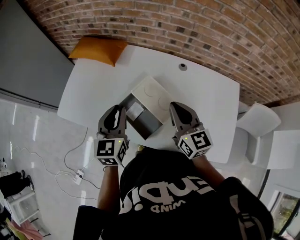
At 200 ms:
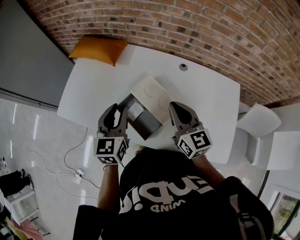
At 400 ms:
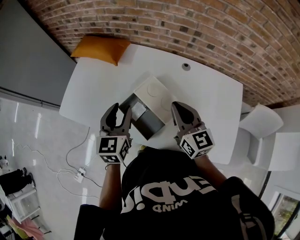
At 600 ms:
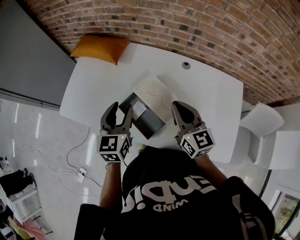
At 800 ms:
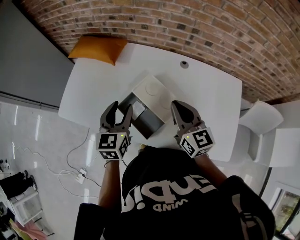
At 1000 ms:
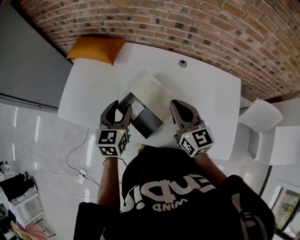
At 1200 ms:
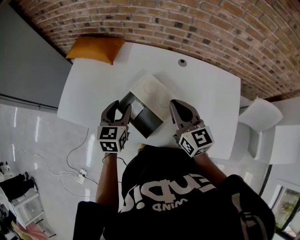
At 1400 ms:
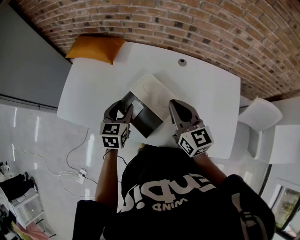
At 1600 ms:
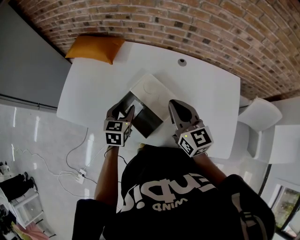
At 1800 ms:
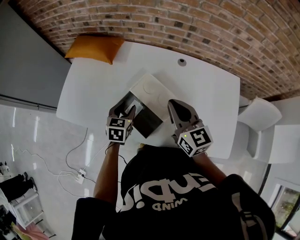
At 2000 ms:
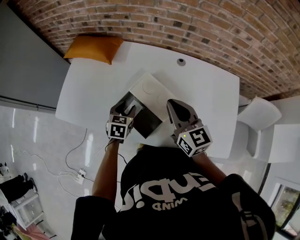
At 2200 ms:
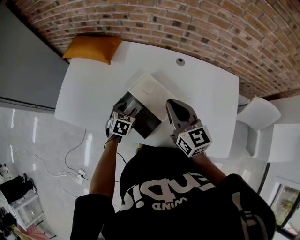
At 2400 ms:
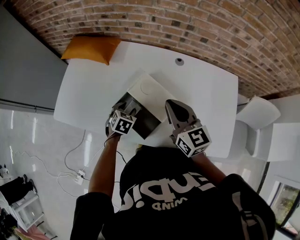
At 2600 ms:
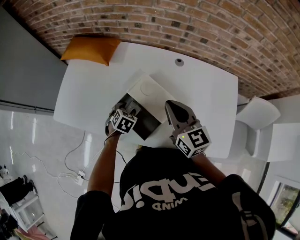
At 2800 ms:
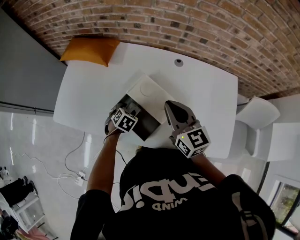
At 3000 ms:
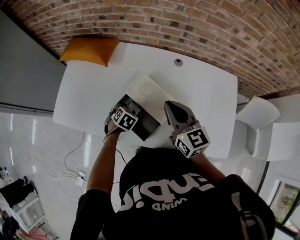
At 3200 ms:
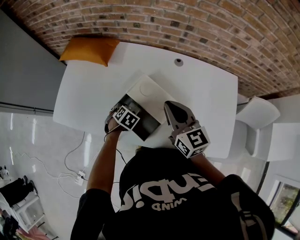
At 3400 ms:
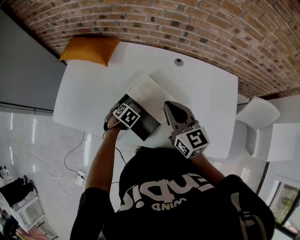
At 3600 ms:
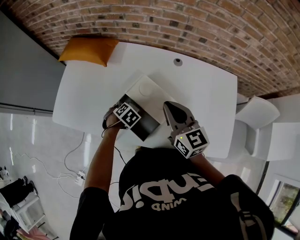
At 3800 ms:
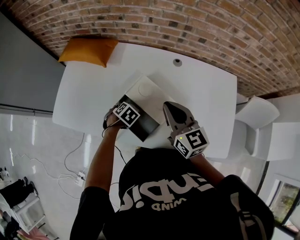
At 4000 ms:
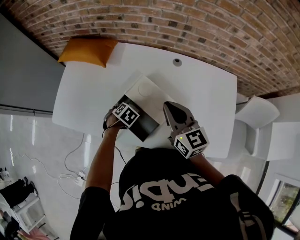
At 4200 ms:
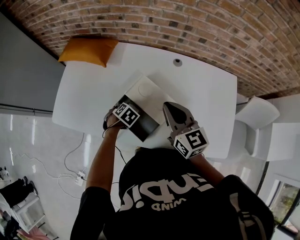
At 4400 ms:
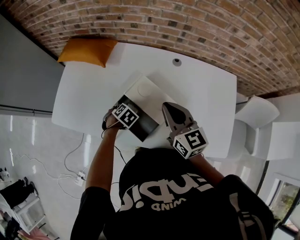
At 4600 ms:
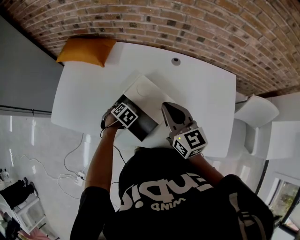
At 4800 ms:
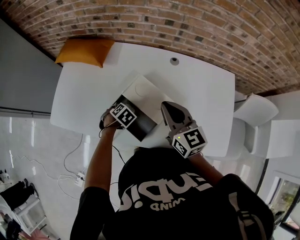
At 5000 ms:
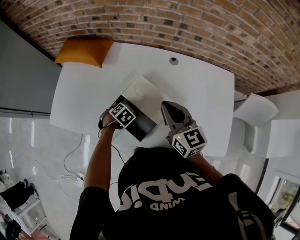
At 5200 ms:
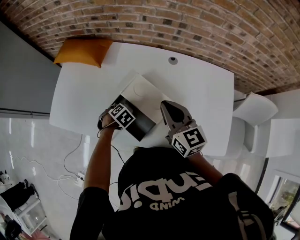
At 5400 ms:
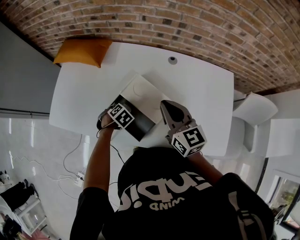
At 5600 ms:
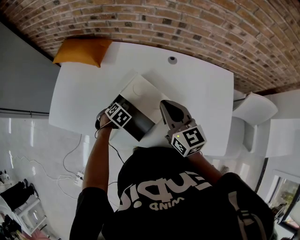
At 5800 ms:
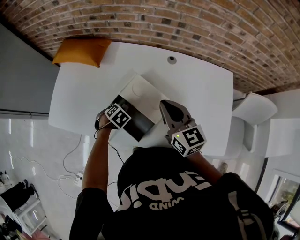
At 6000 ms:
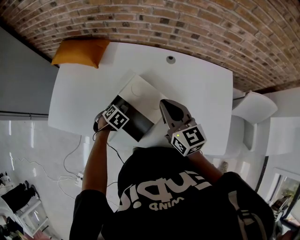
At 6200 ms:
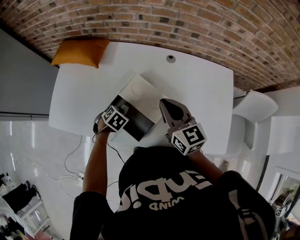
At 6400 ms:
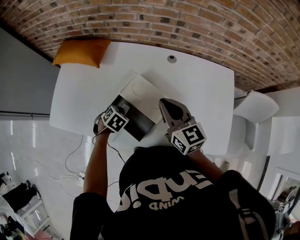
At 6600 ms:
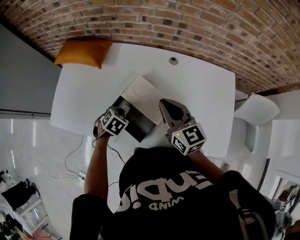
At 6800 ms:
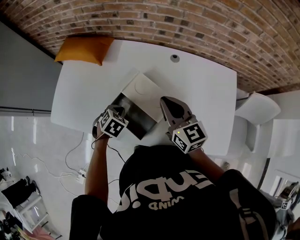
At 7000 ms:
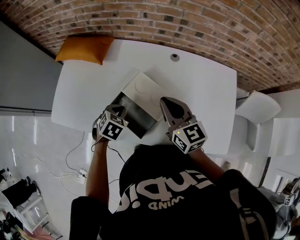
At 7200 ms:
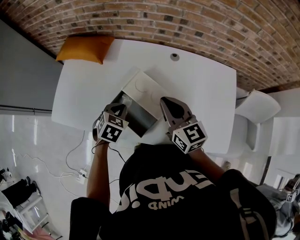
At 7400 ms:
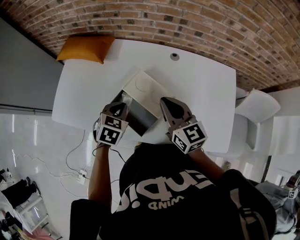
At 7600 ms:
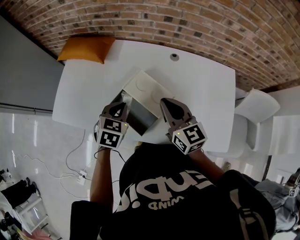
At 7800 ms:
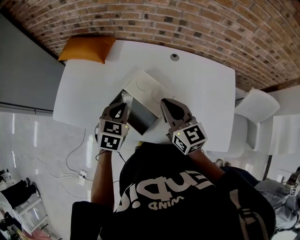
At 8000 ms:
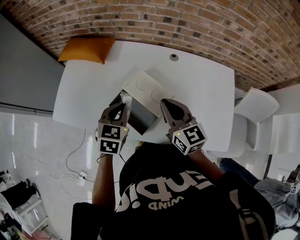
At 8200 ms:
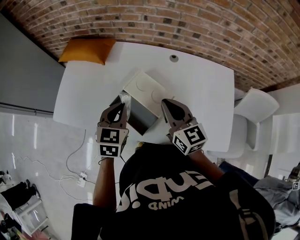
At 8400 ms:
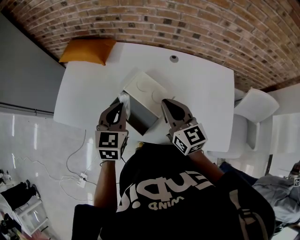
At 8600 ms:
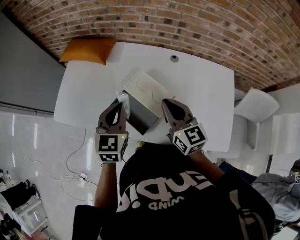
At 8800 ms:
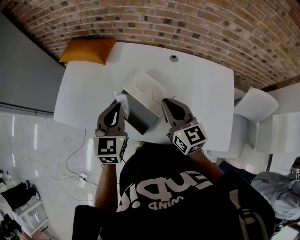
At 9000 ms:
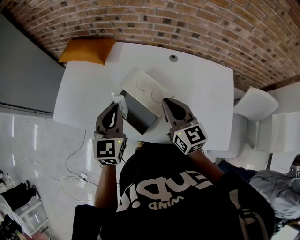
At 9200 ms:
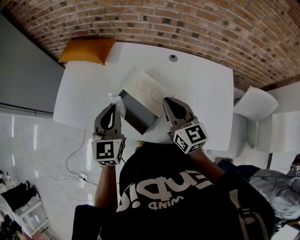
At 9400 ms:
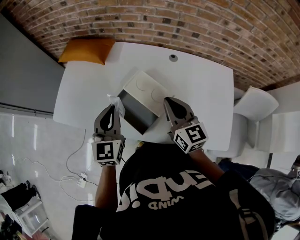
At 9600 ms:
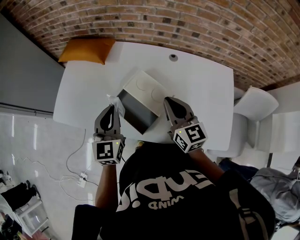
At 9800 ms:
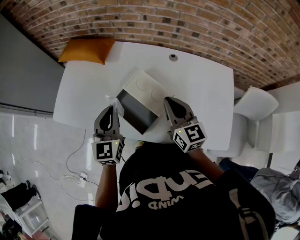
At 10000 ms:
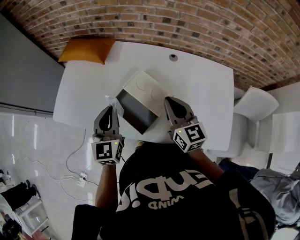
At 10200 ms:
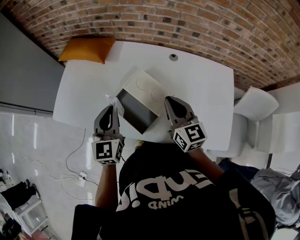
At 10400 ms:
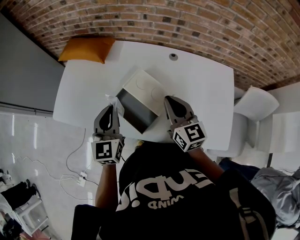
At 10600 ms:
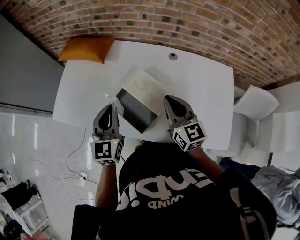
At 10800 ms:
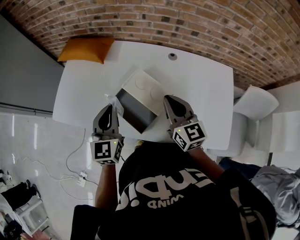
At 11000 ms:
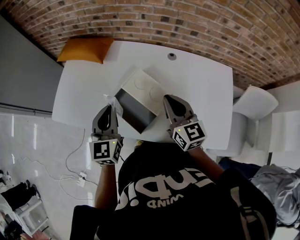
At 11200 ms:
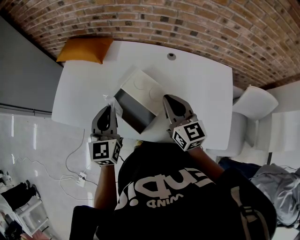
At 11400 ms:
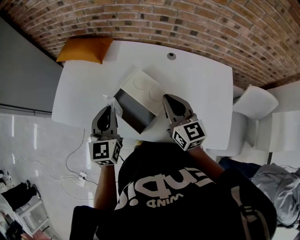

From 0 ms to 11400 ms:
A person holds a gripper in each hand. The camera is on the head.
From 0 ms to 1400 ms: The left gripper is displaced downward by some 10 cm, and opens its fingers.
From 1400 ms to 2800 ms: The left gripper shifts approximately 15 cm downward, and angles its fingers downward, by approximately 30 degrees.
From 2800 ms to 4200 ms: The grippers make only small movements.
From 4200 ms to 5600 ms: The left gripper closes up.
From 5600 ms to 7200 ms: The left gripper shifts approximately 15 cm upward, and rotates about 20 degrees.
From 7200 ms to 8600 ms: The left gripper heads upward, covering roughly 15 cm, and angles its fingers upward, by approximately 30 degrees.
From 8600 ms to 10000 ms: The grippers move only a little.
From 10000 ms to 11400 ms: Both grippers stay put.

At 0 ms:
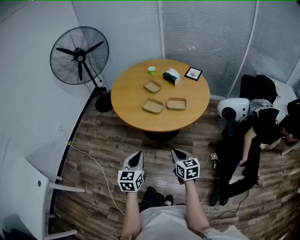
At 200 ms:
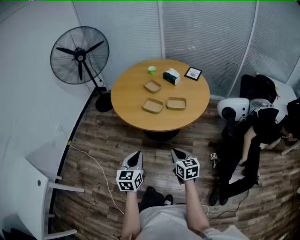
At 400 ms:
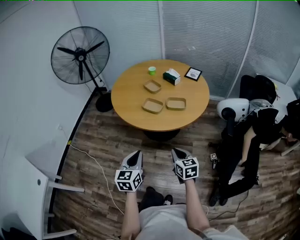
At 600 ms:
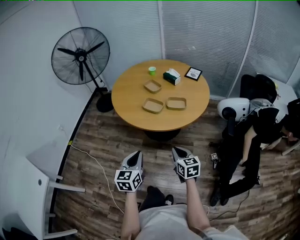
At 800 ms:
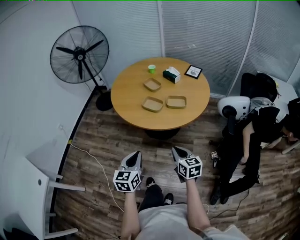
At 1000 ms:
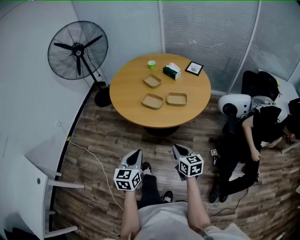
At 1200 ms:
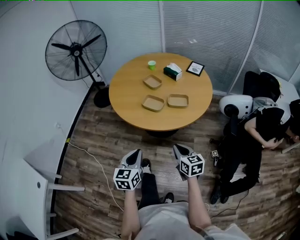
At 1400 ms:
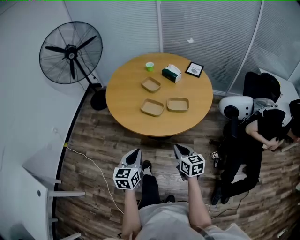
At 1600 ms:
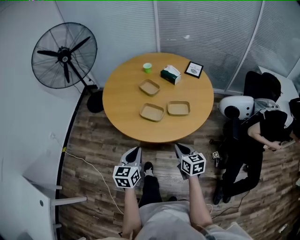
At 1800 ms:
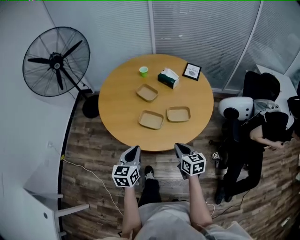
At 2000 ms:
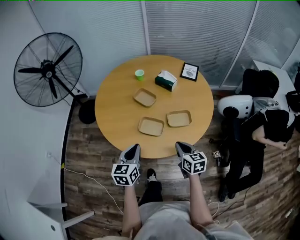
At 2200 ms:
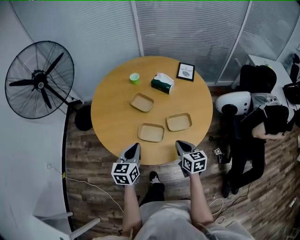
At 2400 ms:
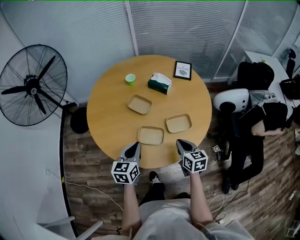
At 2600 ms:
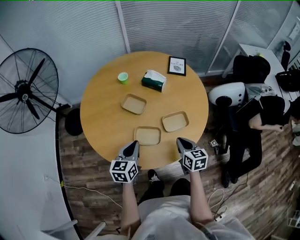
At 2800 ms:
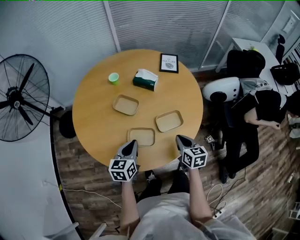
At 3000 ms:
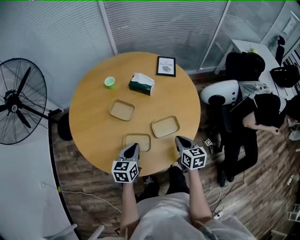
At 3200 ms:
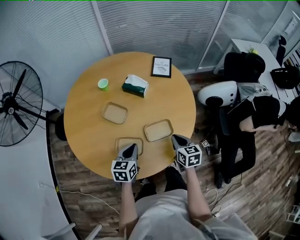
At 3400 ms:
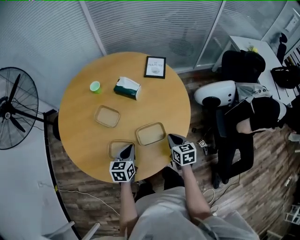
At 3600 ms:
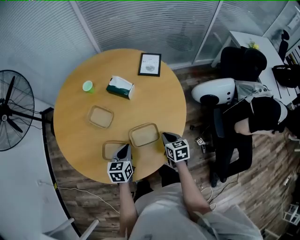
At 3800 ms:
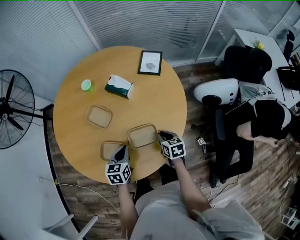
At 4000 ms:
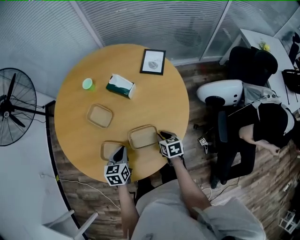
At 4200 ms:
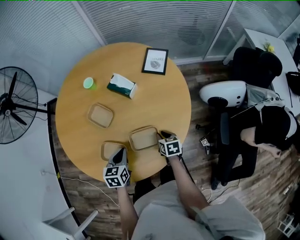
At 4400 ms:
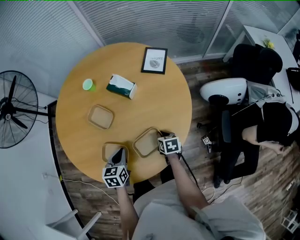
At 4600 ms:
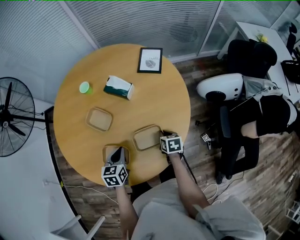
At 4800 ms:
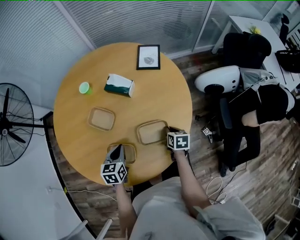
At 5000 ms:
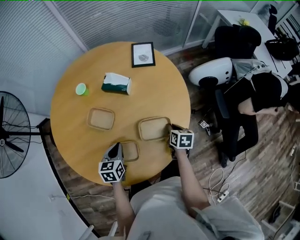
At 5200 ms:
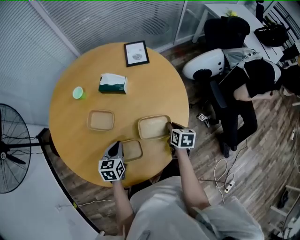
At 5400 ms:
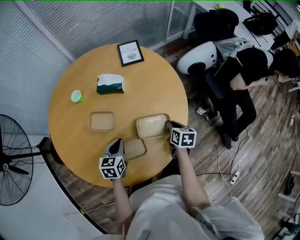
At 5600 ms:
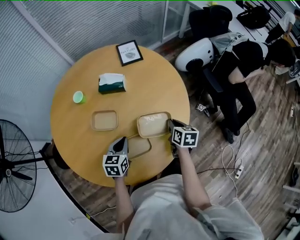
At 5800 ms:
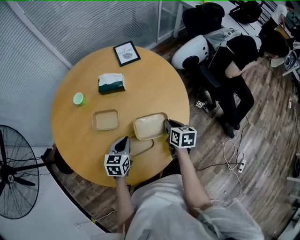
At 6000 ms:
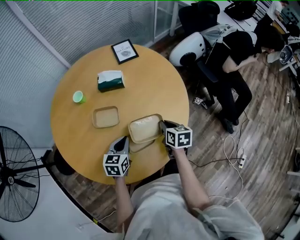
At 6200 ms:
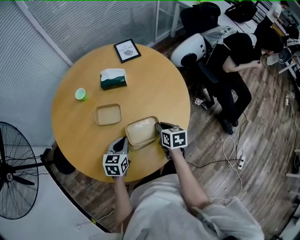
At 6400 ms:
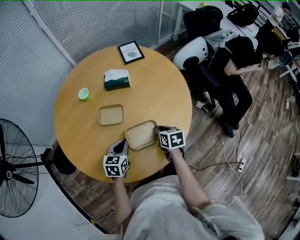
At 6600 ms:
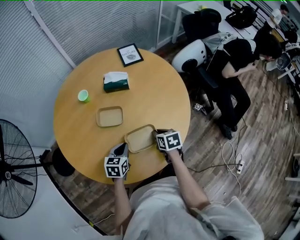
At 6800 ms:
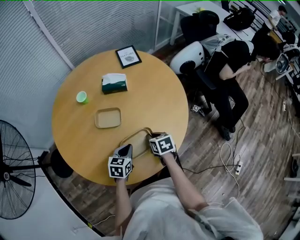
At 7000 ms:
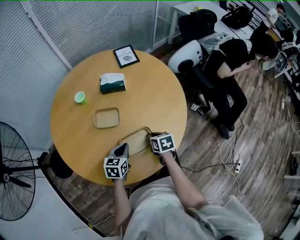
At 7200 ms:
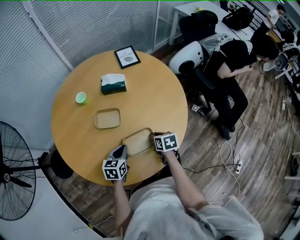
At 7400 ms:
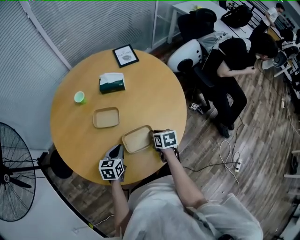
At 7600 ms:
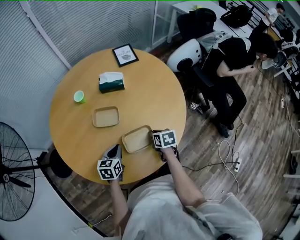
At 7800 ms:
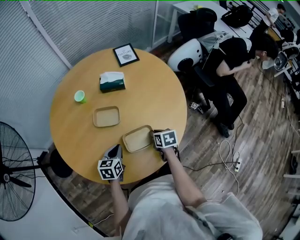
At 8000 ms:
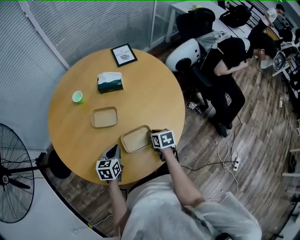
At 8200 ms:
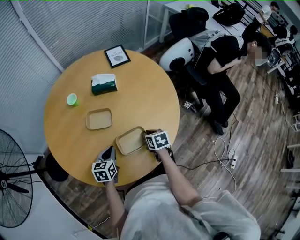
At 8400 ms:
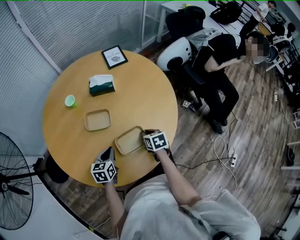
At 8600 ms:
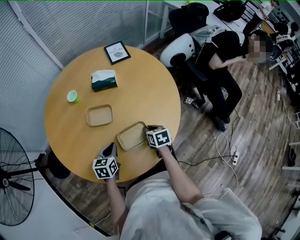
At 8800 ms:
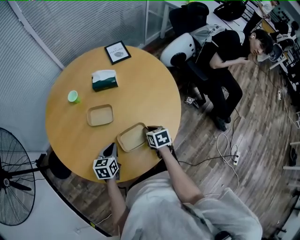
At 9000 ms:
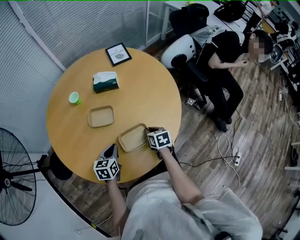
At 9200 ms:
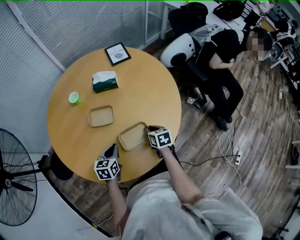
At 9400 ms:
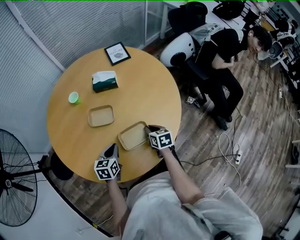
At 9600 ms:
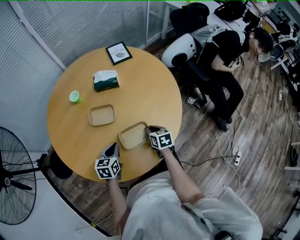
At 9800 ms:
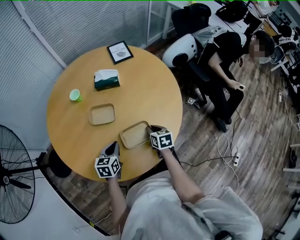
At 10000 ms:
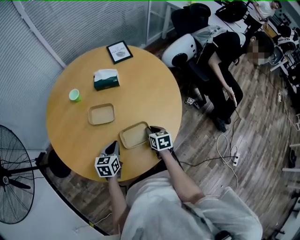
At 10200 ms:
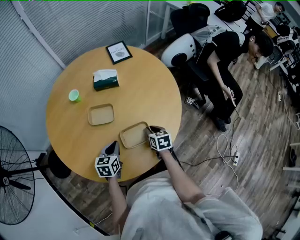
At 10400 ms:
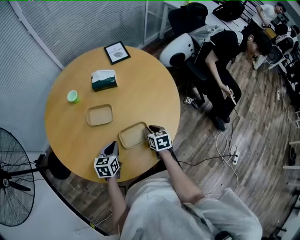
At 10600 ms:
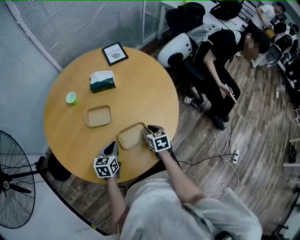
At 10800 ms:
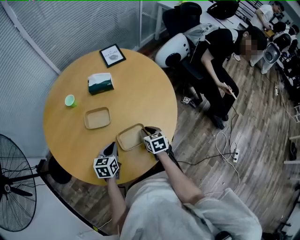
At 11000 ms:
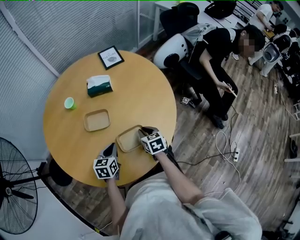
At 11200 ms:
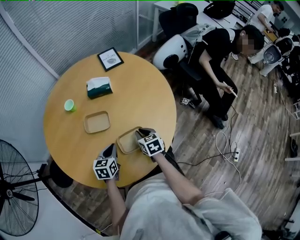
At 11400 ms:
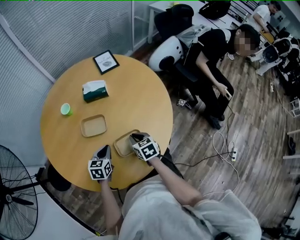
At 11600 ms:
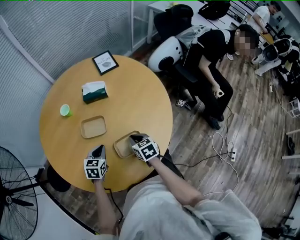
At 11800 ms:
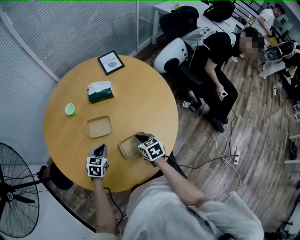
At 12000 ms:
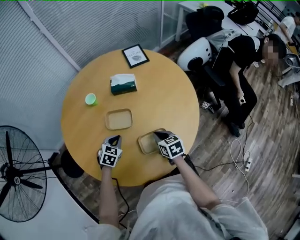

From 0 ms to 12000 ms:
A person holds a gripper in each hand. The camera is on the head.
From 0 ms to 1600 ms: Both grippers travel together forward, roughly 15 cm.
From 1600 ms to 3000 ms: The two grippers go approximately 25 cm forward. The right gripper turns by some 20 degrees. Meanwhile the left gripper swivels approximately 20 degrees.
From 3000 ms to 4400 ms: The left gripper goes some 10 cm to the right, downward and forward, while the right gripper travels downward and forward by about 20 cm, and rotates some 20 degrees.
From 4400 ms to 6000 ms: The right gripper ends up approximately 20 cm from where it was, and rotates roughly 40 degrees. The left gripper moves some 10 cm, and changes its angle by roughly 40 degrees.
From 6000 ms to 7600 ms: The left gripper heads to the left, covering approximately 5 cm. The right gripper travels downward and to the left by approximately 10 cm.
From 7600 ms to 10400 ms: There are only small adjustments of the grippers.
From 10400 ms to 12000 ms: The right gripper moves to the left, approximately 5 cm. The left gripper travels forward and to the left by about 10 cm, and rotates about 30 degrees.
